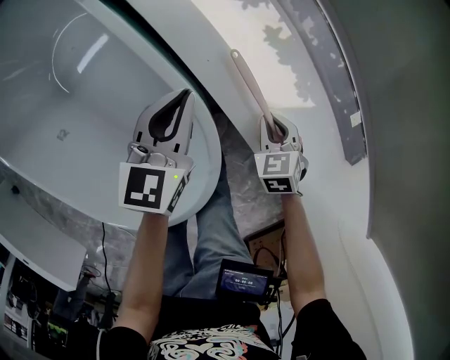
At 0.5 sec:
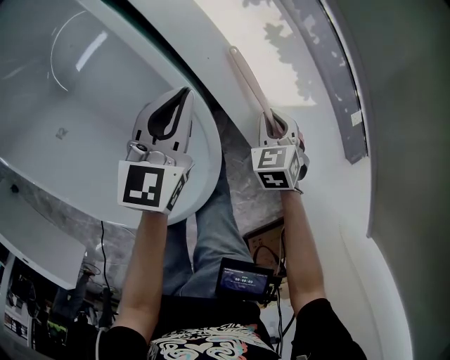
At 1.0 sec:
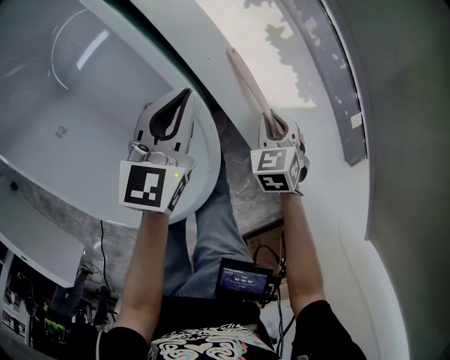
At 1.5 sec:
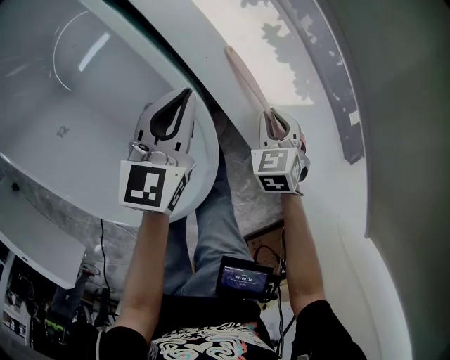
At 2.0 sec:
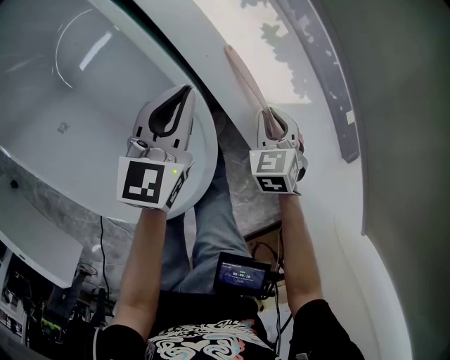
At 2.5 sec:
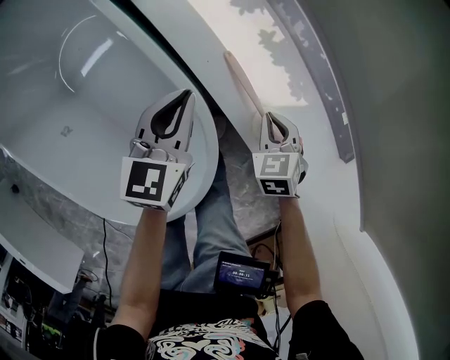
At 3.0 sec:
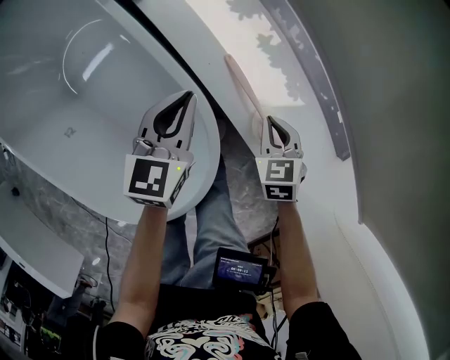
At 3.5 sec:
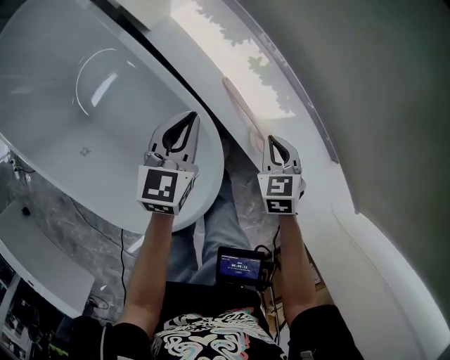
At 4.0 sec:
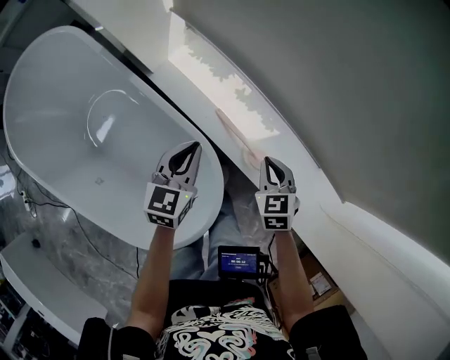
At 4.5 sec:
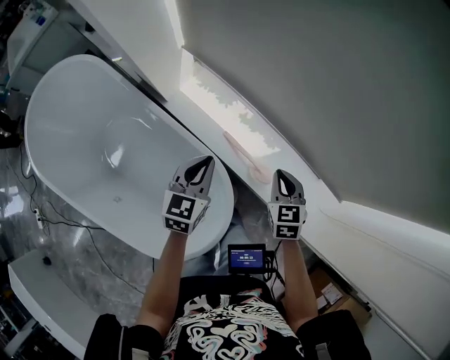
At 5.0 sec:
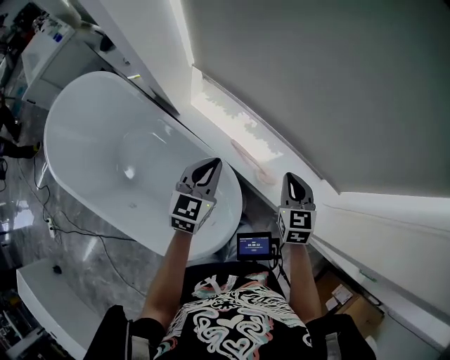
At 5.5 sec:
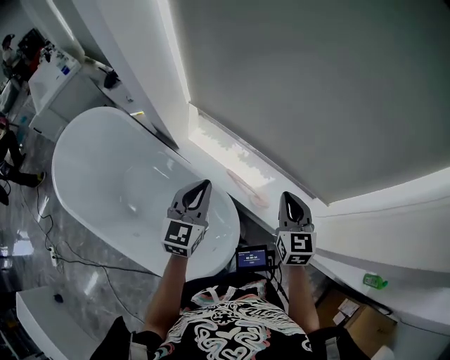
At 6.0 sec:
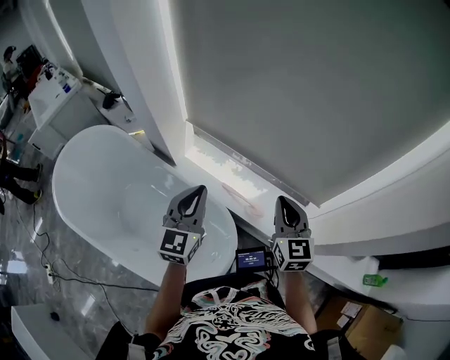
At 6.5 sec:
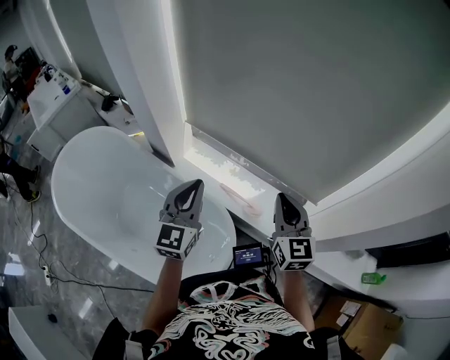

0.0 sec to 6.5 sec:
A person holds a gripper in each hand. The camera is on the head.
0.0 sec to 2.0 sec: The grippers stay close to where they were, moving slightly.
2.0 sec to 4.5 sec: Both grippers travel together upward, about 30 cm. The right gripper swivels some 30 degrees.
4.5 sec to 6.5 sec: Both grippers travel together upward and backward, about 30 cm. The right gripper tilts its fingers roughly 30 degrees upward. The left gripper swivels approximately 30 degrees.

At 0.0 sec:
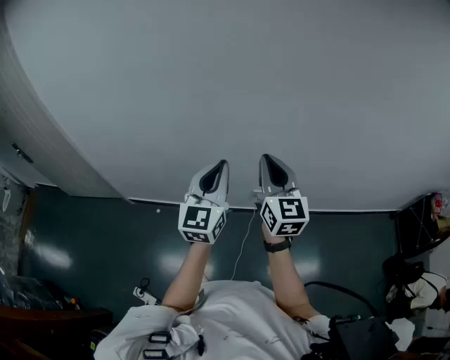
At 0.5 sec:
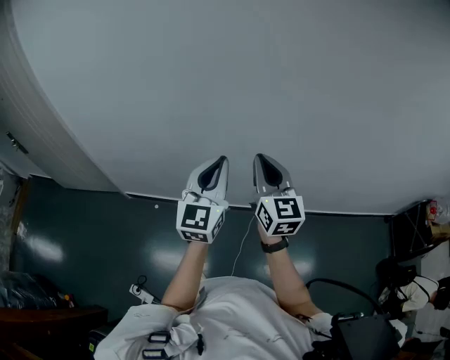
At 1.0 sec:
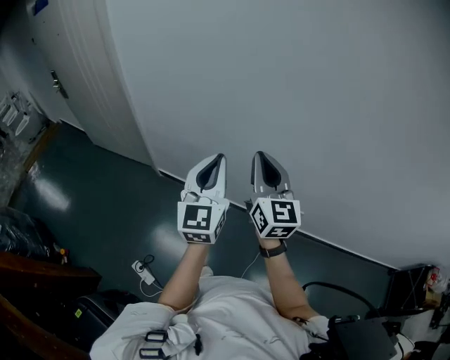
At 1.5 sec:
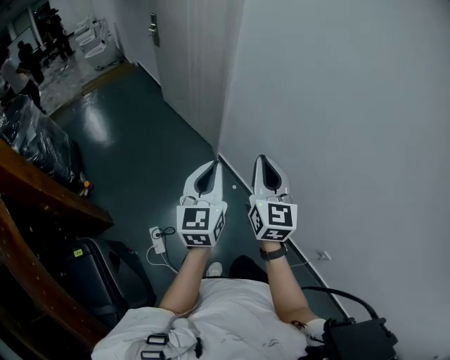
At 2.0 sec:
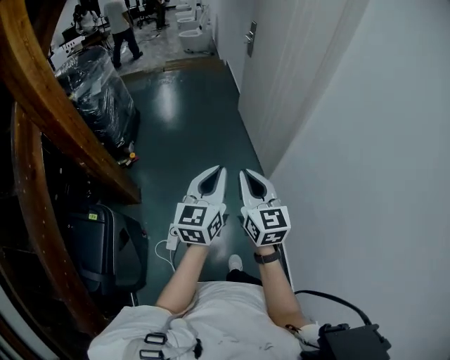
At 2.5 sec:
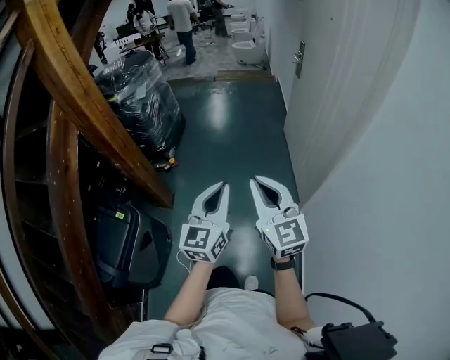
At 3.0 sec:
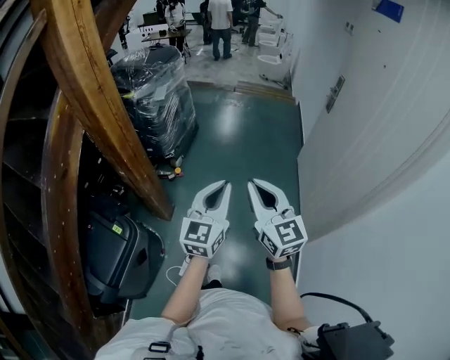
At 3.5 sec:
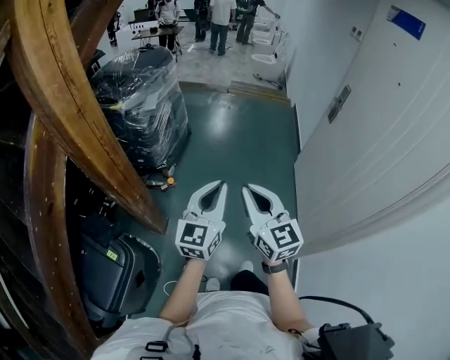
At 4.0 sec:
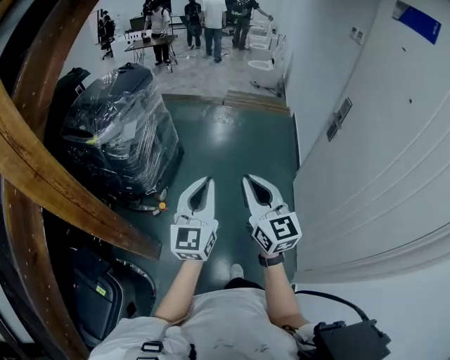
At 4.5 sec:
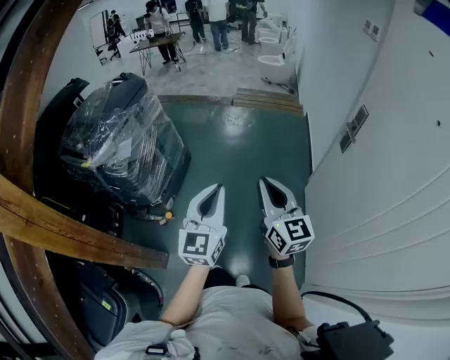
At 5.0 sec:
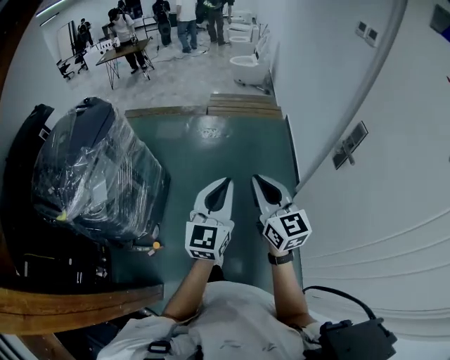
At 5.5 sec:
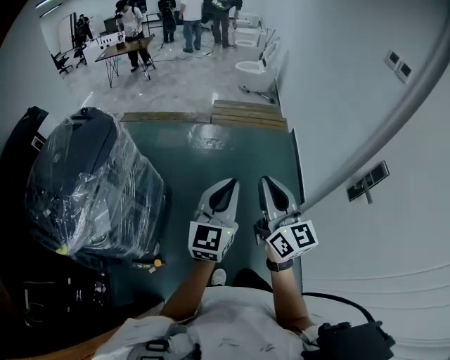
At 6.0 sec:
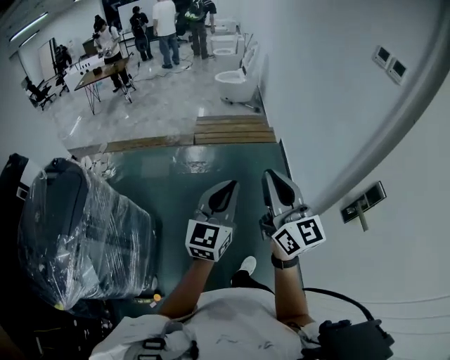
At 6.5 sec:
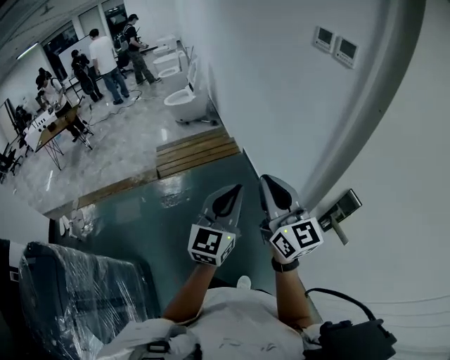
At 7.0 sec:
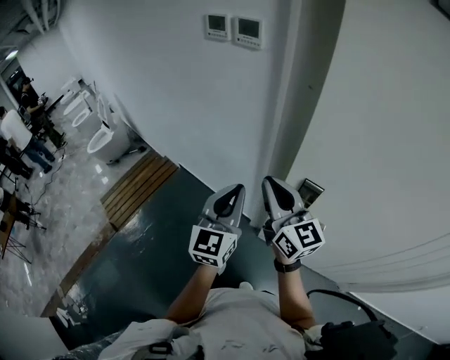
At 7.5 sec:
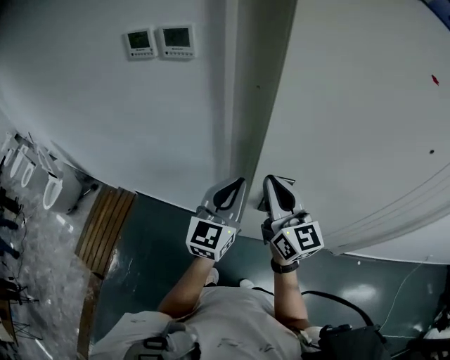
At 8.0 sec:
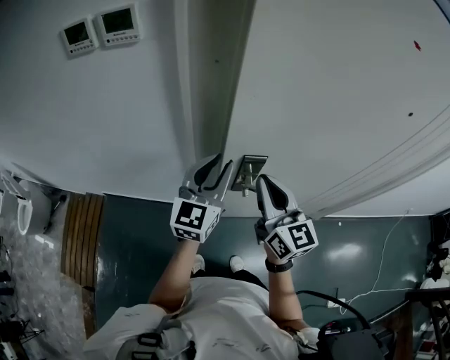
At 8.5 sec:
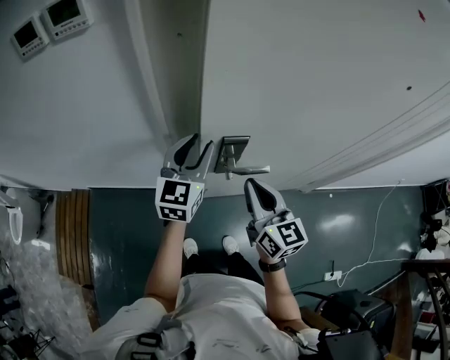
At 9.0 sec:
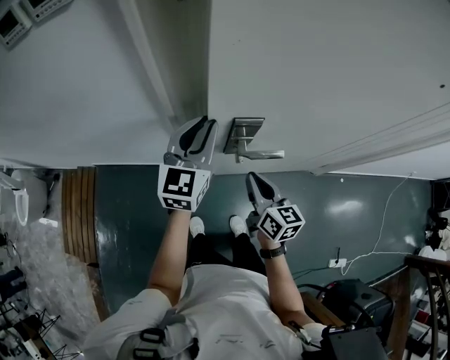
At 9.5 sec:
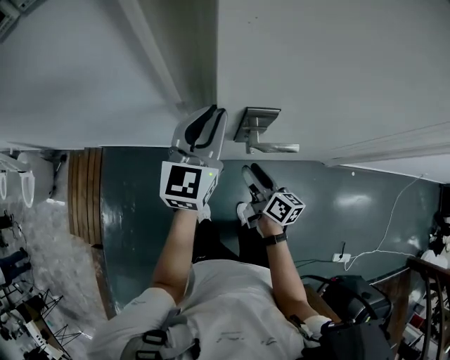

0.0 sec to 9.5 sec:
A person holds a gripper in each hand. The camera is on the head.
0.0 sec to 2.0 sec: The pair of grippers is taken roughly 70 cm. The left gripper rotates approximately 80 degrees. The right gripper rotates some 80 degrees.
2.0 sec to 4.0 sec: Both grippers are carried approximately 50 cm. The left gripper rotates approximately 30 degrees. The right gripper turns by about 30 degrees.
4.0 sec to 5.5 sec: The pair of grippers is taken forward, some 50 cm.
5.5 sec to 7.5 sec: The two grippers travel together, roughly 60 cm. The left gripper turns by about 80 degrees, while the right gripper changes its angle by about 80 degrees.
7.5 sec to 9.5 sec: The right gripper moves downward, some 30 cm, rotates around the line of its fingers by roughly 50 degrees, clockwise from behind, and opens. Meanwhile the left gripper goes approximately 10 cm downward and forward, and opens and closes again.

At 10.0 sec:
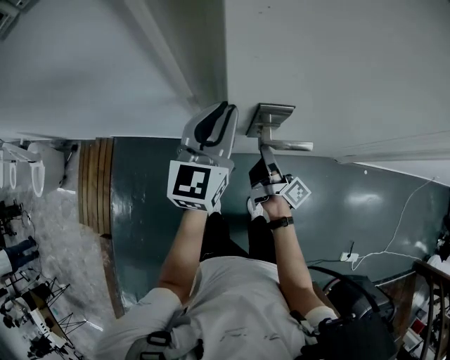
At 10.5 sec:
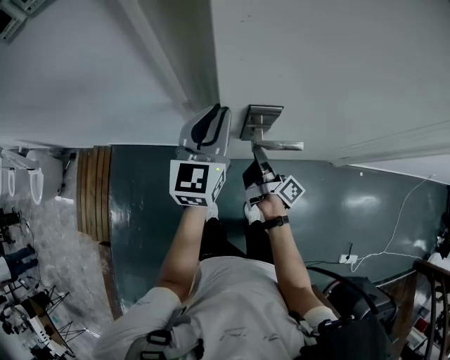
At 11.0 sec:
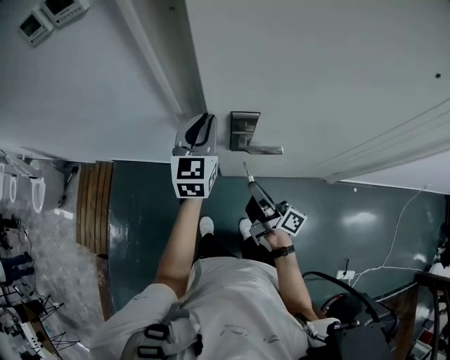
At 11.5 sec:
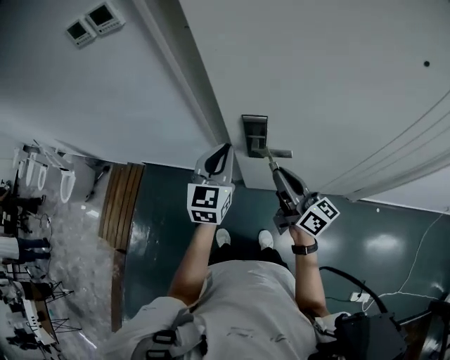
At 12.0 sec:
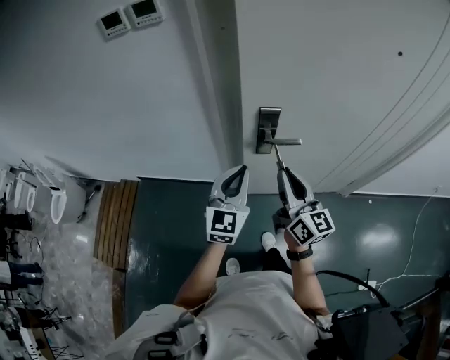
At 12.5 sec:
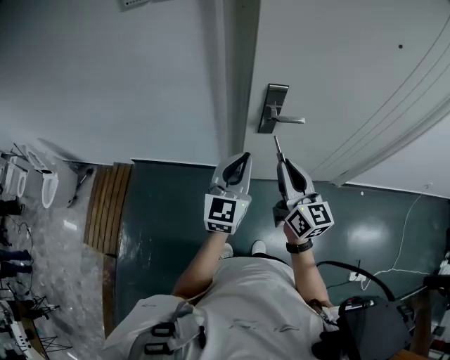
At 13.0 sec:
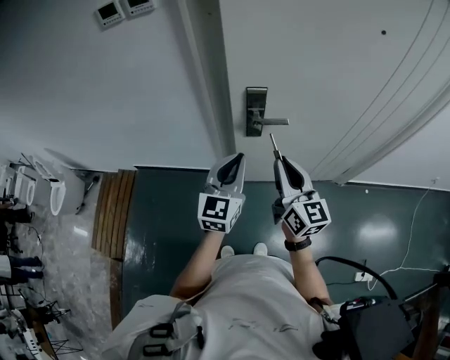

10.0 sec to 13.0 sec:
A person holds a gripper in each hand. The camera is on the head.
10.0 sec to 11.5 sec: The left gripper shifts some 5 cm backward; the right gripper shifts some 20 cm upward and backward, rotates approximately 40 degrees, and closes its fingers.
11.5 sec to 13.0 sec: The right gripper heads backward and upward, covering approximately 15 cm, and turns by some 30 degrees. The left gripper travels backward by some 15 cm.

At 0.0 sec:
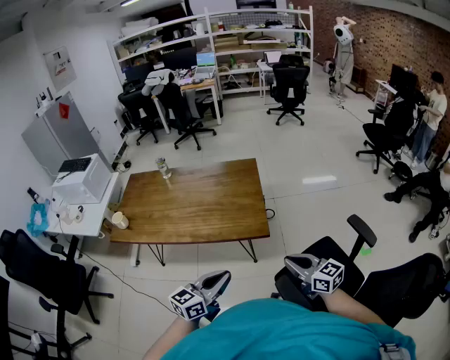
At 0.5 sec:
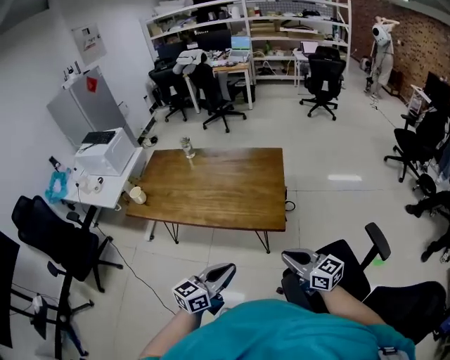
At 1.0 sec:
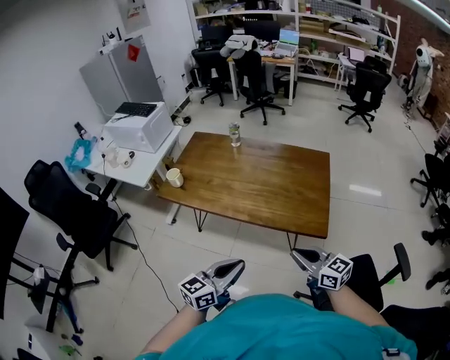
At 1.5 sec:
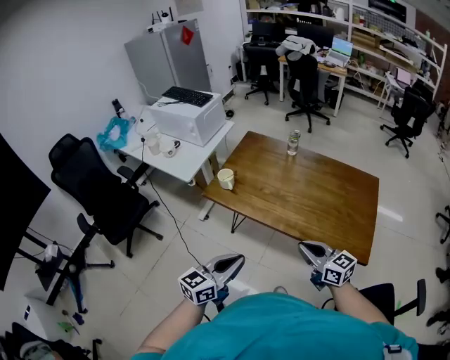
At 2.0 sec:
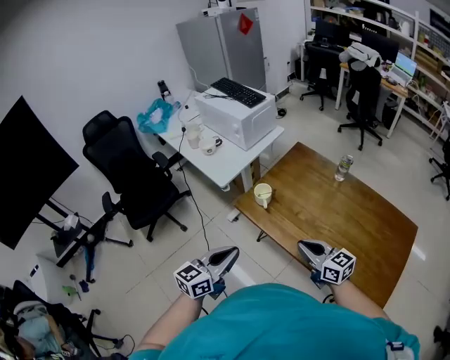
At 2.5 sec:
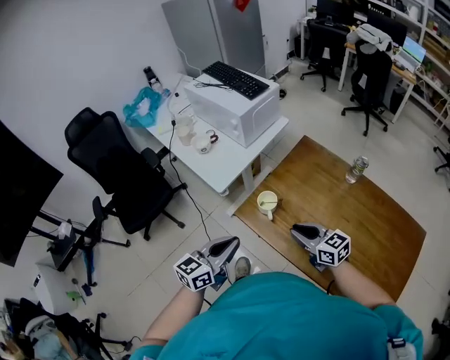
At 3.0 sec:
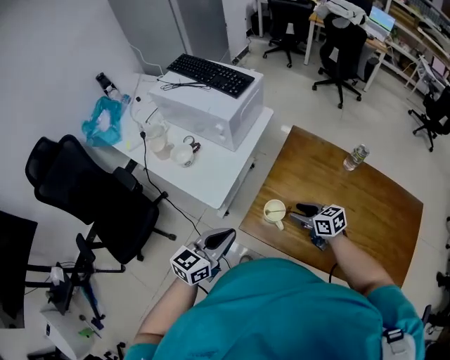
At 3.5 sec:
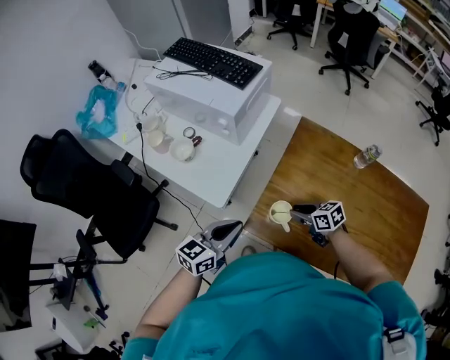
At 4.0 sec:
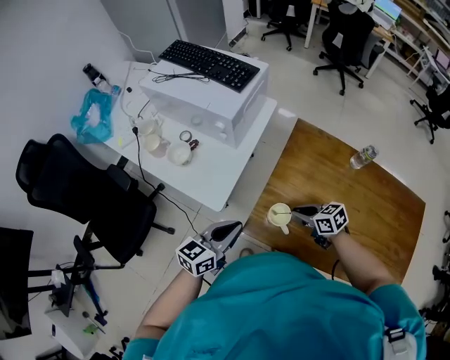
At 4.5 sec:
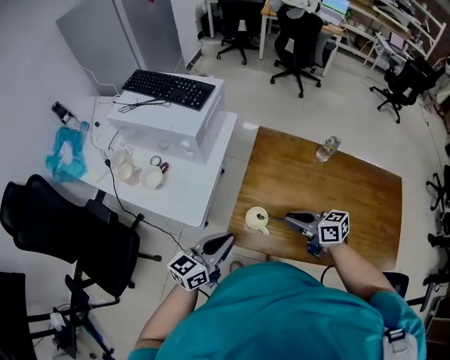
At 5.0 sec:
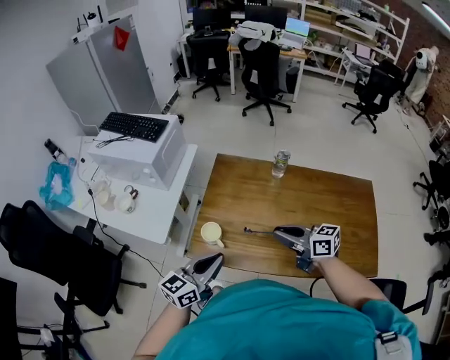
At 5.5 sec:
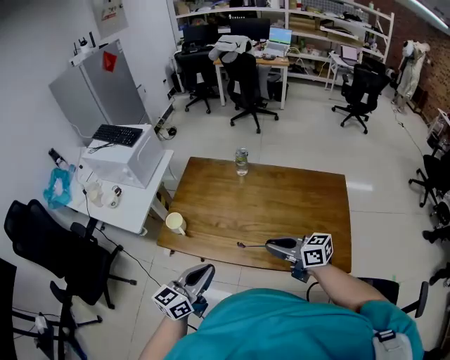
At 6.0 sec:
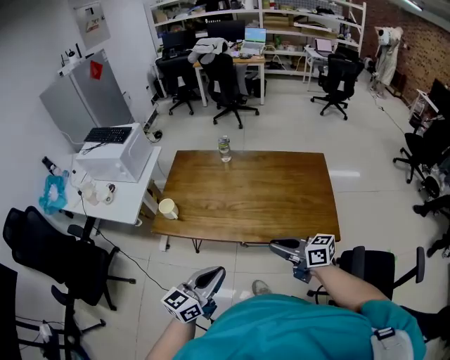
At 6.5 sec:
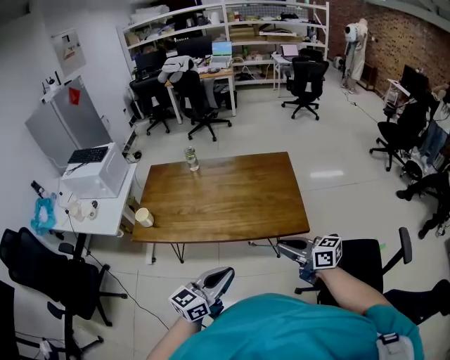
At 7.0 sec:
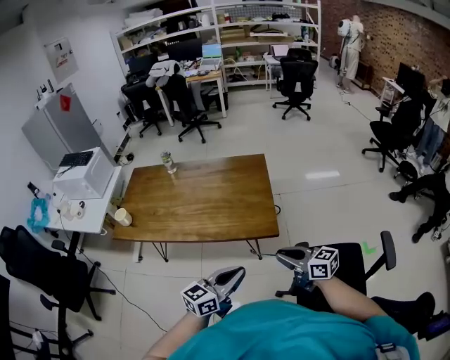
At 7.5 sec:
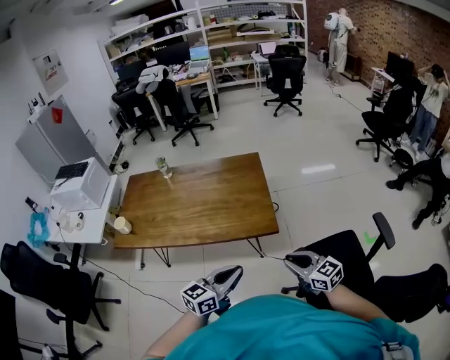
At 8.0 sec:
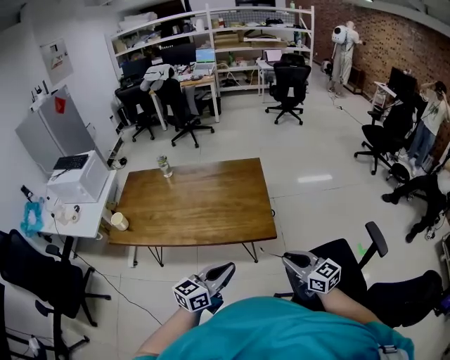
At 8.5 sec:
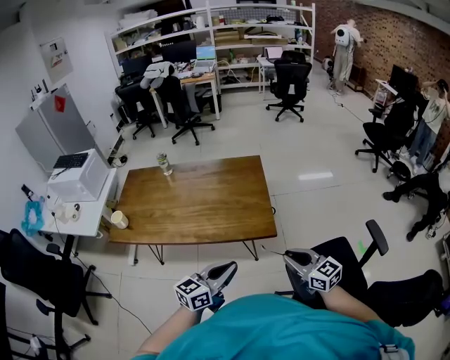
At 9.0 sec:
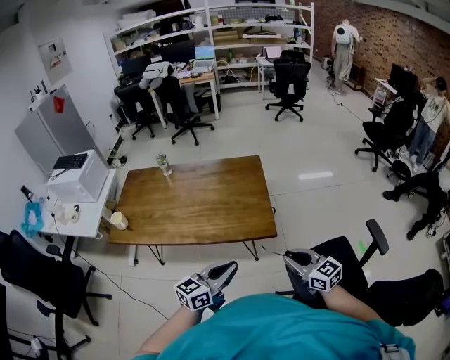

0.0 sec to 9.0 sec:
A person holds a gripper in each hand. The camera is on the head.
0.0 sec to 2.0 sec: The pair of grippers is taken roughly 60 cm. The left gripper swivels some 40 degrees. Meanwhile the right gripper changes its angle by approximately 30 degrees.
2.0 sec to 4.5 sec: The left gripper goes some 40 cm forward, and swivels about 30 degrees. Meanwhile the right gripper travels forward and to the left by some 40 cm, turns by approximately 30 degrees, and opens, then closes once more.
4.5 sec to 7.0 sec: Both grippers are carried to the right and backward, about 1 m. The right gripper swivels approximately 20 degrees.
7.0 sec to 9.0 sec: The right gripper swivels roughly 20 degrees. Meanwhile the left gripper shifts by approximately 5 cm.
